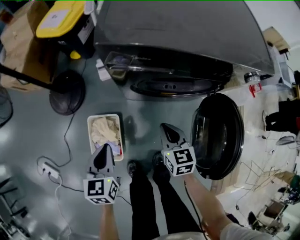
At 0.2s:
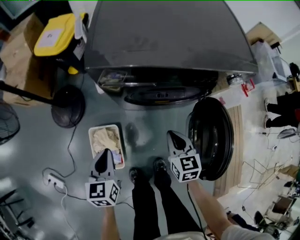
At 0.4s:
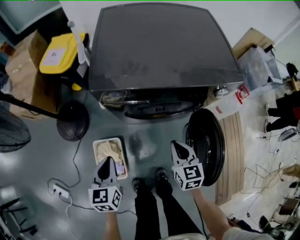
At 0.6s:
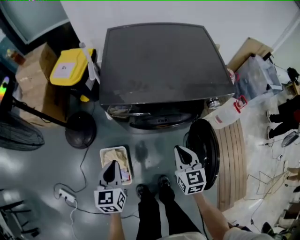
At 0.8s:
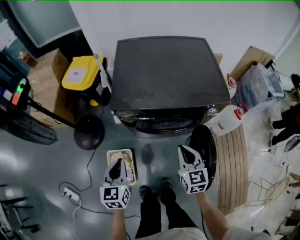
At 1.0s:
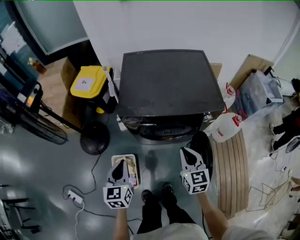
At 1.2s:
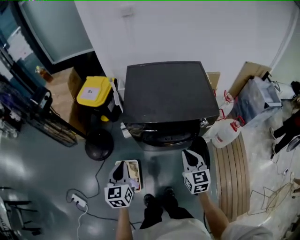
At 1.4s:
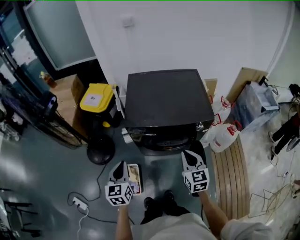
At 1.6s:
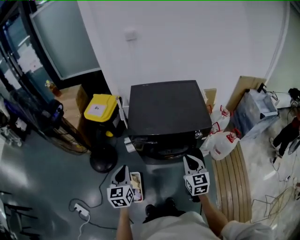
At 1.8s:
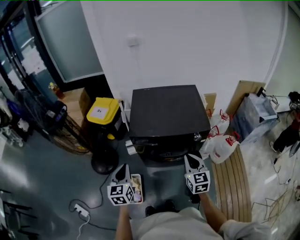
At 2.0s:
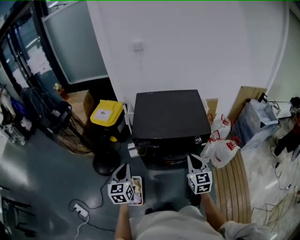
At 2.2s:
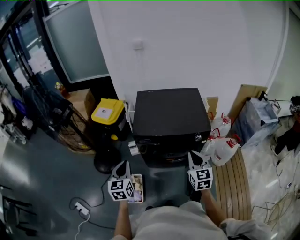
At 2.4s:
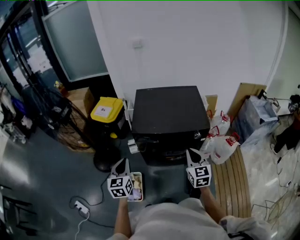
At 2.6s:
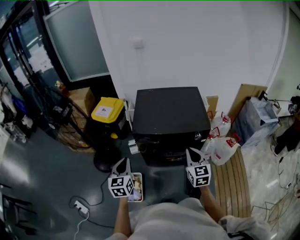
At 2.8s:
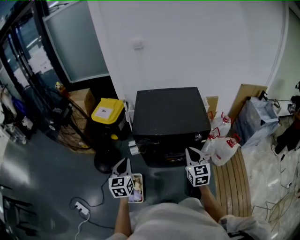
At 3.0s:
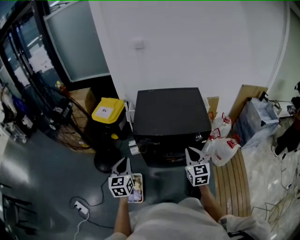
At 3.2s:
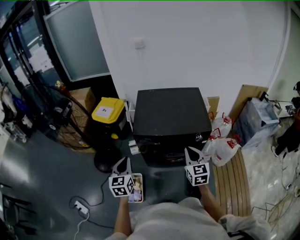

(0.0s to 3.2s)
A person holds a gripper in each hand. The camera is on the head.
0.0s - 1.6s: The grippers both shift upward by about 40 cm. The right gripper swivels roughly 20 degrees.
1.6s - 3.2s: The grippers move only a little.

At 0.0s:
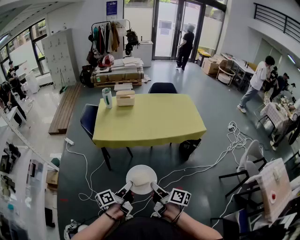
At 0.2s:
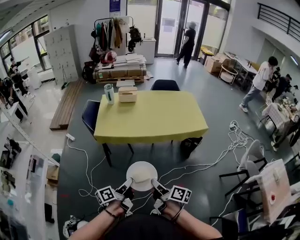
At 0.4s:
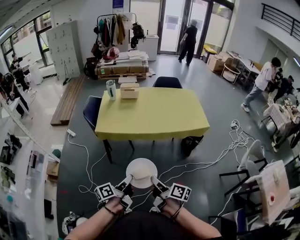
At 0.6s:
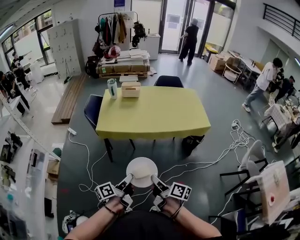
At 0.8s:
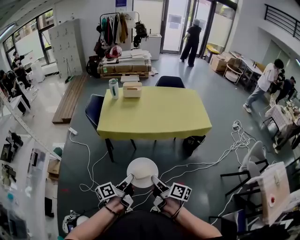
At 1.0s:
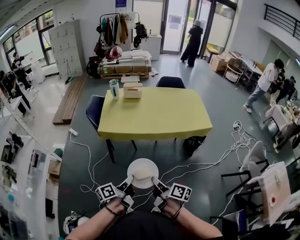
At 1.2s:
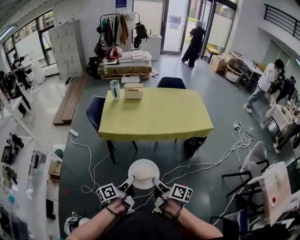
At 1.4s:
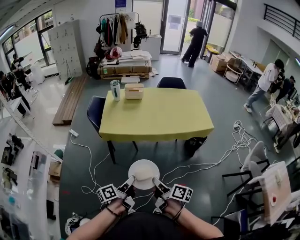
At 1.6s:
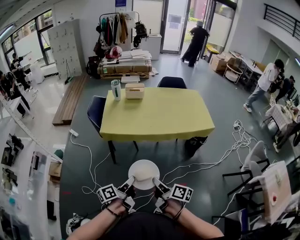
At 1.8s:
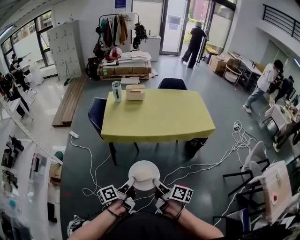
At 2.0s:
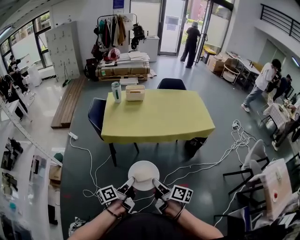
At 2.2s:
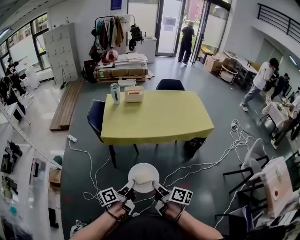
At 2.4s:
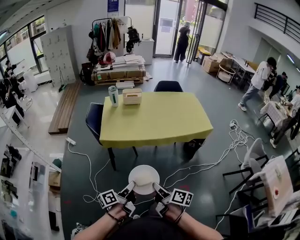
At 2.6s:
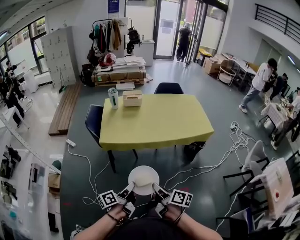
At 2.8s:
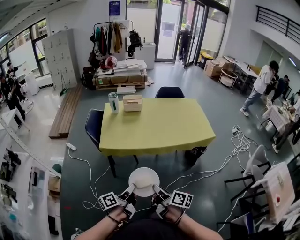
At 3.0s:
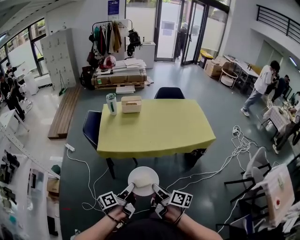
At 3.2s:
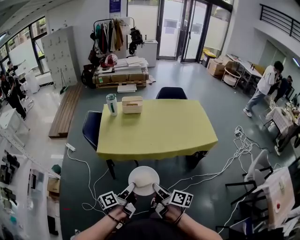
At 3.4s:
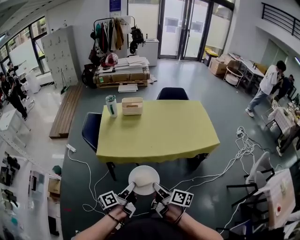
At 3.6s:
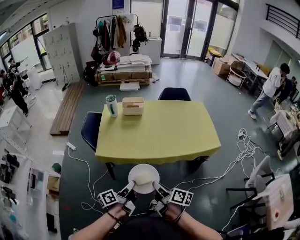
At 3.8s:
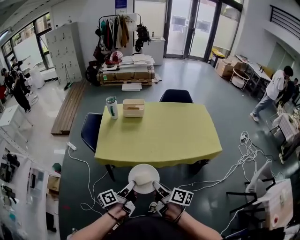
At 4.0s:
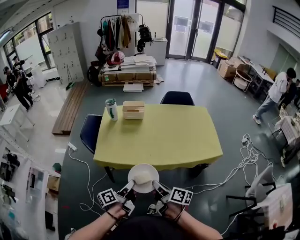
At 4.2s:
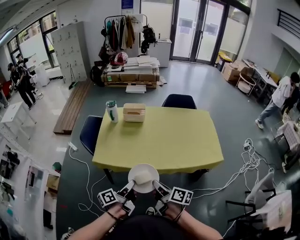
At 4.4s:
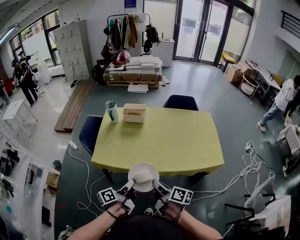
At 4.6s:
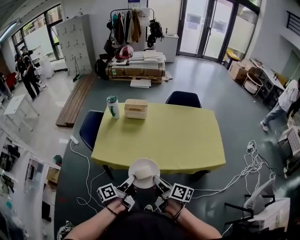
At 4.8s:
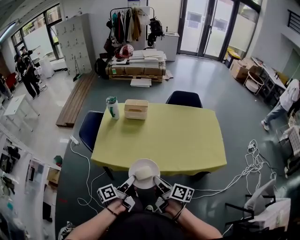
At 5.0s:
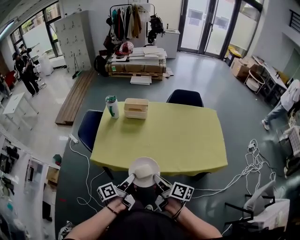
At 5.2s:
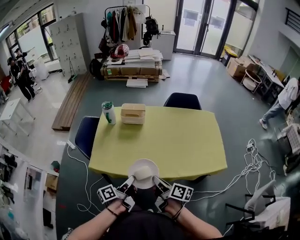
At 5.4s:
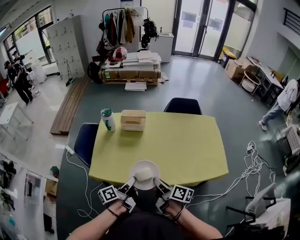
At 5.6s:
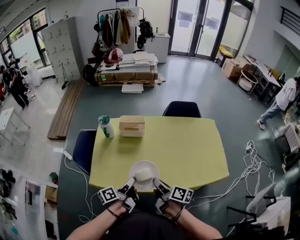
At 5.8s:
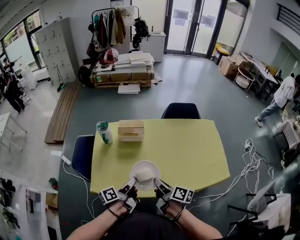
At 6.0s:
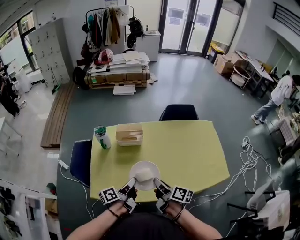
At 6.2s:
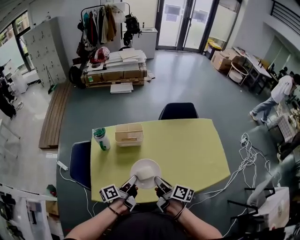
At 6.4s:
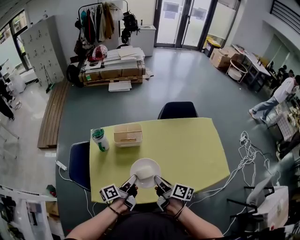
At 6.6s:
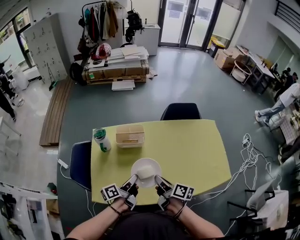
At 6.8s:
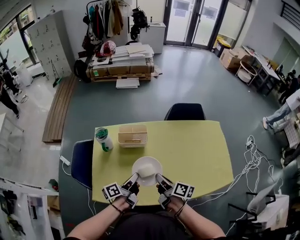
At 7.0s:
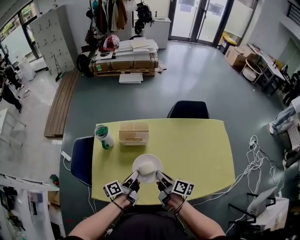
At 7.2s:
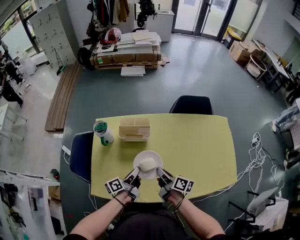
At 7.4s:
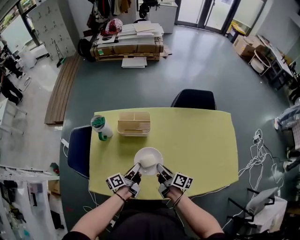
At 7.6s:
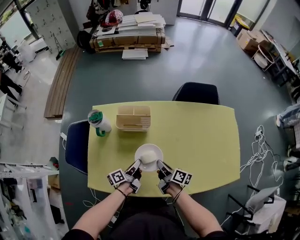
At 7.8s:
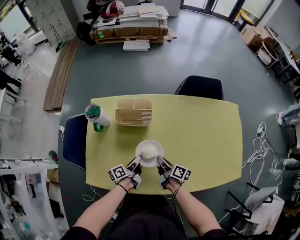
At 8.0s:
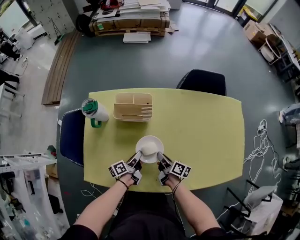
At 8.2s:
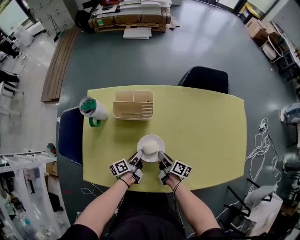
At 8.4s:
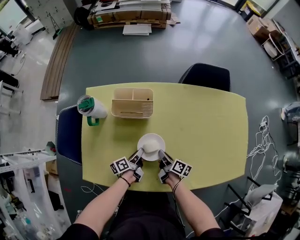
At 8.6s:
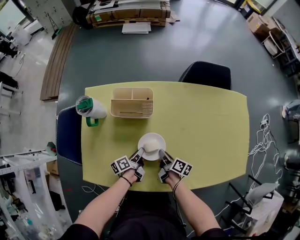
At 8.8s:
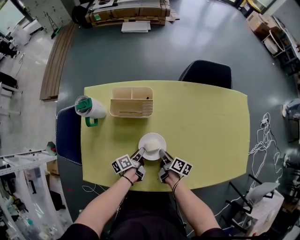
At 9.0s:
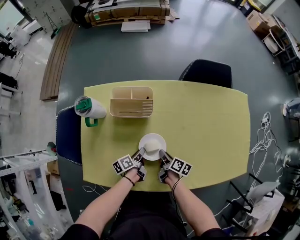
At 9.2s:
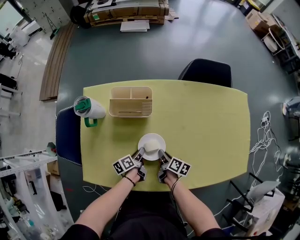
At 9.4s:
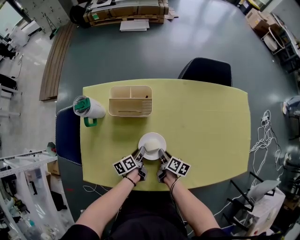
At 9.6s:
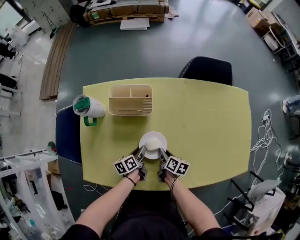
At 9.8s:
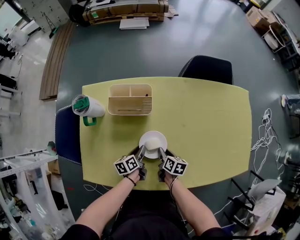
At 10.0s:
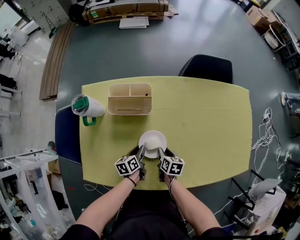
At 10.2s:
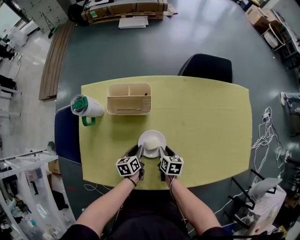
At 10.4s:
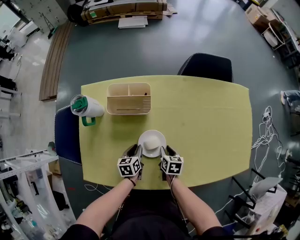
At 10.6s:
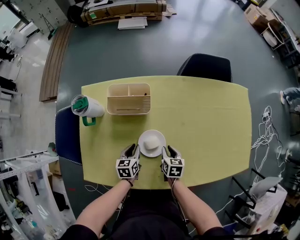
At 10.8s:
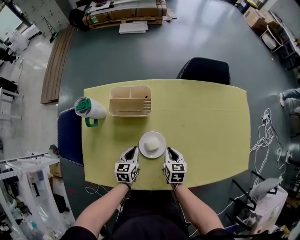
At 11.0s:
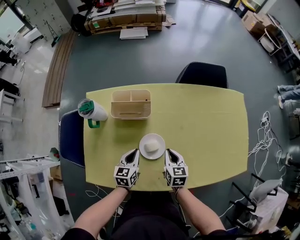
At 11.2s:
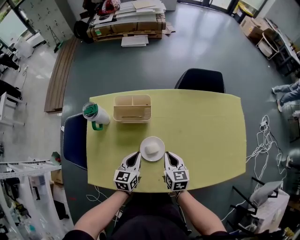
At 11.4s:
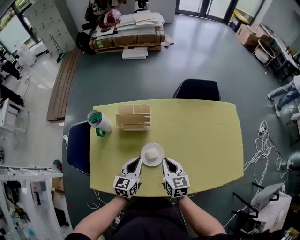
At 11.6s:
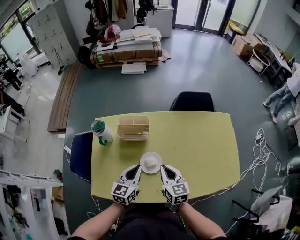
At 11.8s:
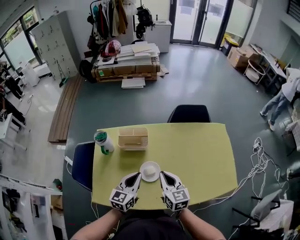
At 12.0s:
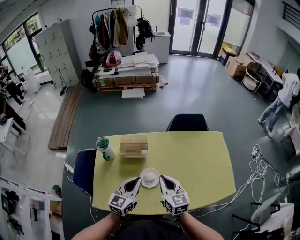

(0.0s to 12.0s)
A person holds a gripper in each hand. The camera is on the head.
0.0s - 1.6s: Both grippers travel together to the left, some 5 cm.
1.6s - 3.0s: The two grippers go roughly 10 cm forward.
3.0s - 4.4s: Both grippers travel together forward and to the right, roughly 25 cm.
4.4s - 6.0s: The two grippers go about 30 cm forward.
6.0s - 7.6s: The two grippers go roughly 20 cm downward and forward.
7.6s - 9.0s: Both grippers travel together downward, about 15 cm. The left gripper rotates roughly 20 degrees.
9.0s - 10.4s: The right gripper changes its angle by approximately 40 degrees, and opens up. The left gripper rotates approximately 40 degrees.
10.4s - 12.0s: Both grippers move upward, approximately 35 cm. The right gripper tilts its fingers roughly 40 degrees upward, and closes up. The left gripper tips its fingers upward by some 30 degrees.

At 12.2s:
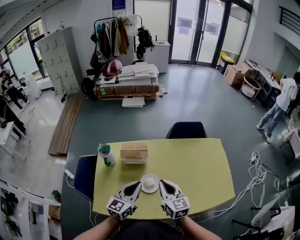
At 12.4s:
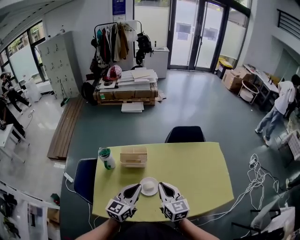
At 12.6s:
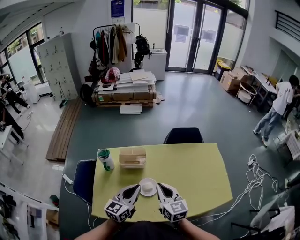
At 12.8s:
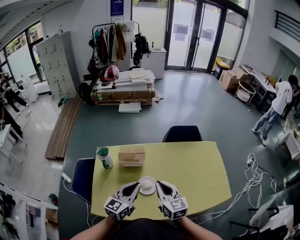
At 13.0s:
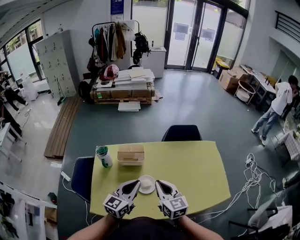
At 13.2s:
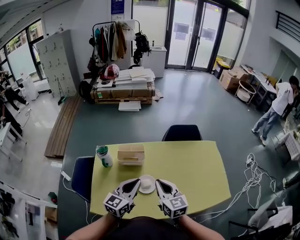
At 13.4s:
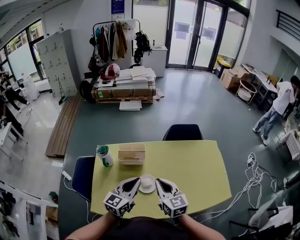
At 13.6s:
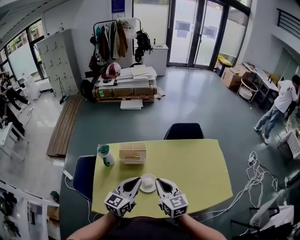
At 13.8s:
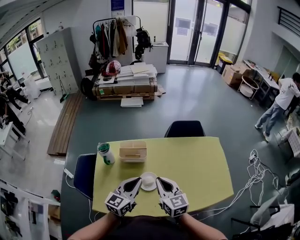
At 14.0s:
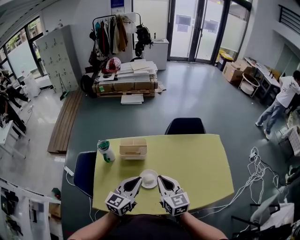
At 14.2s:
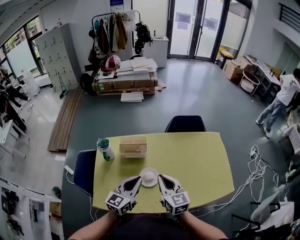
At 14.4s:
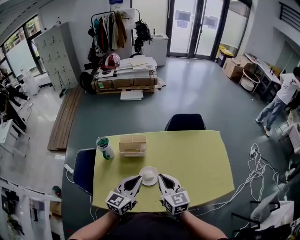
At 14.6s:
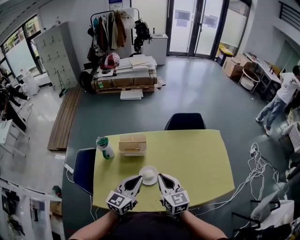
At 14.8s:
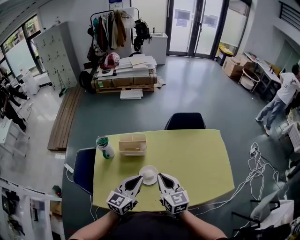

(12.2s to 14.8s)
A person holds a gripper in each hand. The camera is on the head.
12.2s - 14.8s: The grippers stay close to where they were, moving slightly.

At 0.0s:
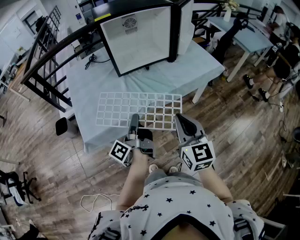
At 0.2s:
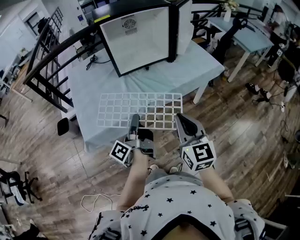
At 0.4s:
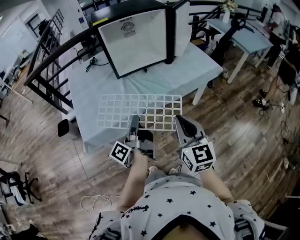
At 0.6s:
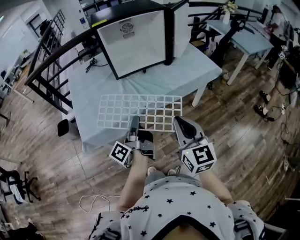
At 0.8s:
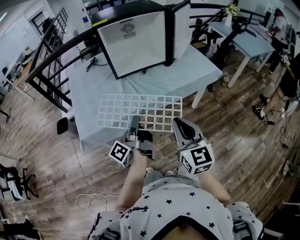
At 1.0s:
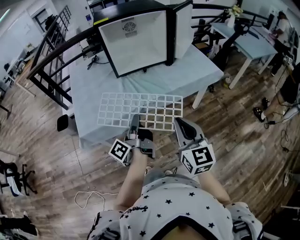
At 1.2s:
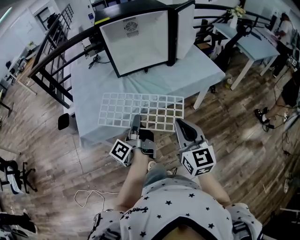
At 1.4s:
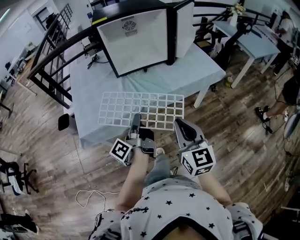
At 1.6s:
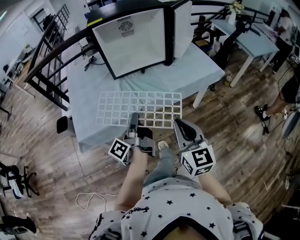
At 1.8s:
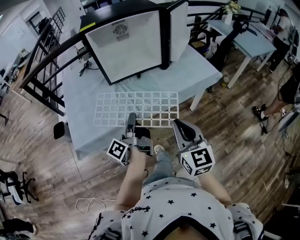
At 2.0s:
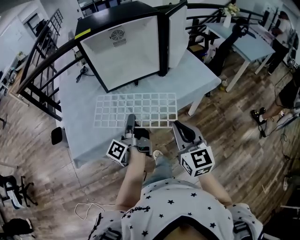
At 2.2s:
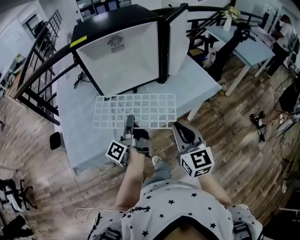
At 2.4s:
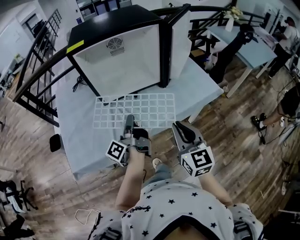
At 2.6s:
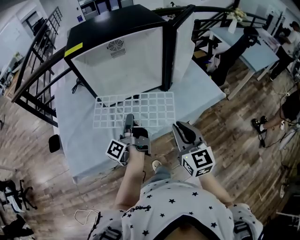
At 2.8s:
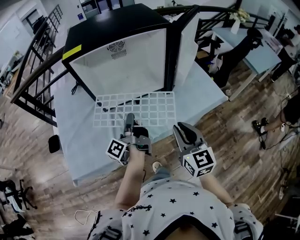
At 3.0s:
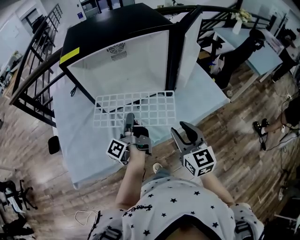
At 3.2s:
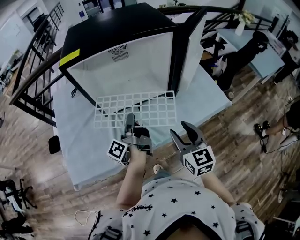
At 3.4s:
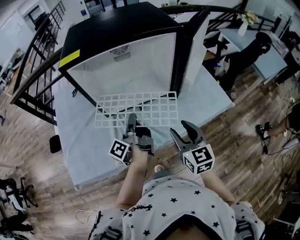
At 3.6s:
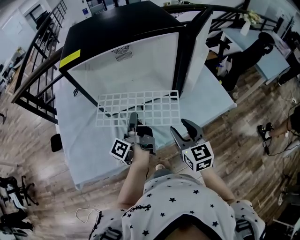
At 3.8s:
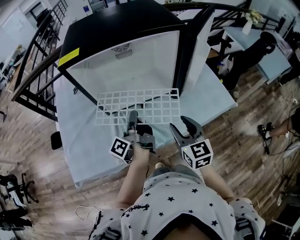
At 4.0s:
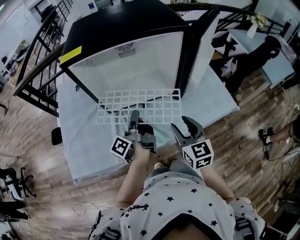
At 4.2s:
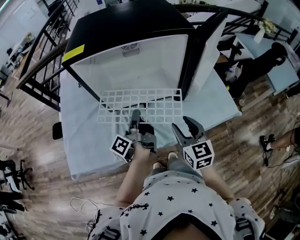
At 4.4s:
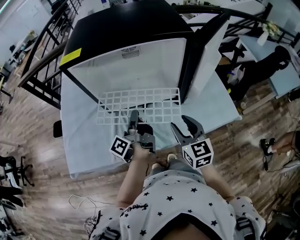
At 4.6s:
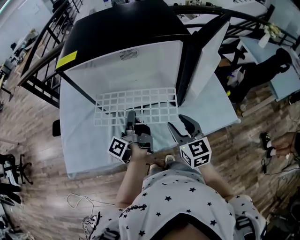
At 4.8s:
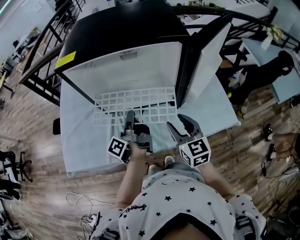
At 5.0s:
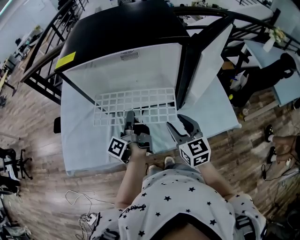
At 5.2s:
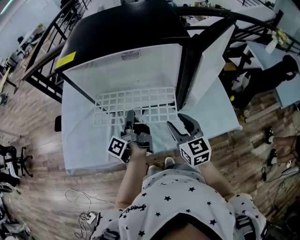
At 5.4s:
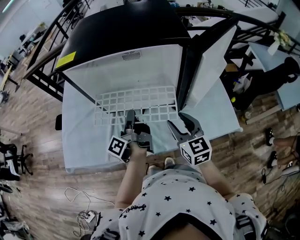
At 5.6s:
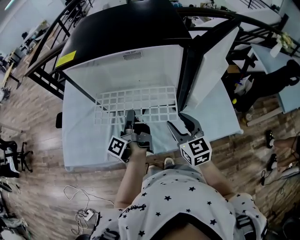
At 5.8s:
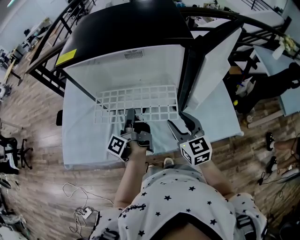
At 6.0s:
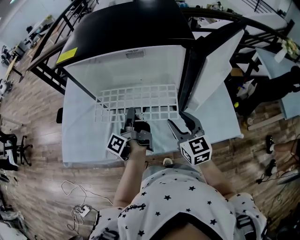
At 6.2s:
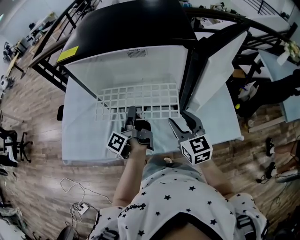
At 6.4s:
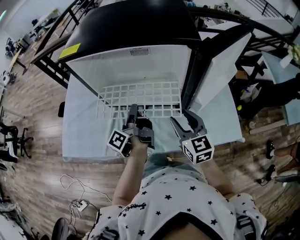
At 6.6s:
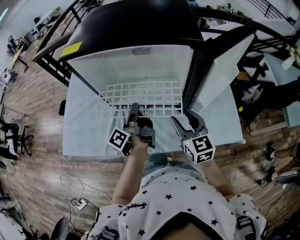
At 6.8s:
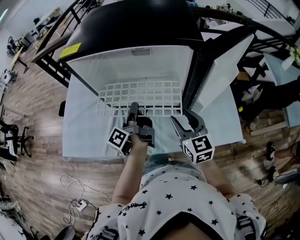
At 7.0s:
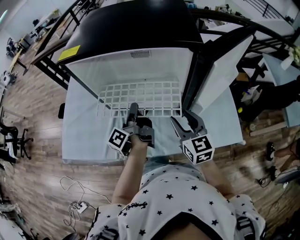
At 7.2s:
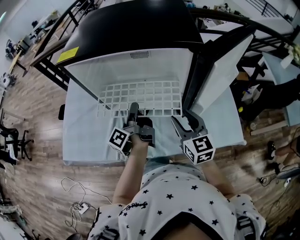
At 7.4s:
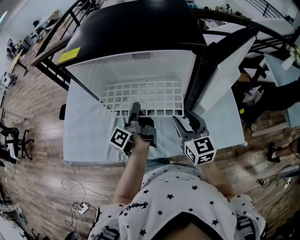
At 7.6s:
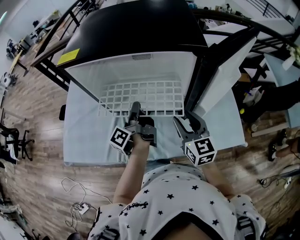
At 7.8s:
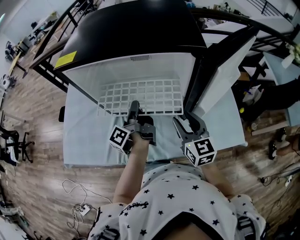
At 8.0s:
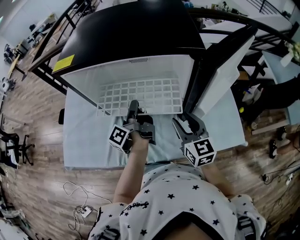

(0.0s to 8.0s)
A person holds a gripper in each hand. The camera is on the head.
0.0s - 1.6s: The right gripper moves some 5 cm.
1.6s - 3.2s: The right gripper changes place by roughly 30 cm, and opens up.
3.2s - 4.8s: The right gripper ends up approximately 10 cm from where it was.
